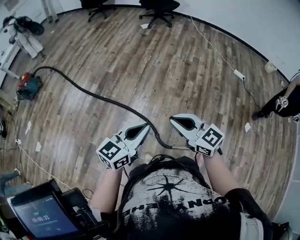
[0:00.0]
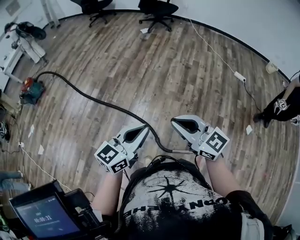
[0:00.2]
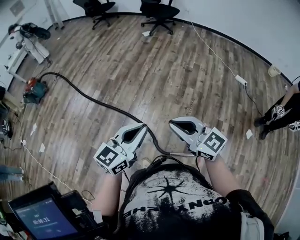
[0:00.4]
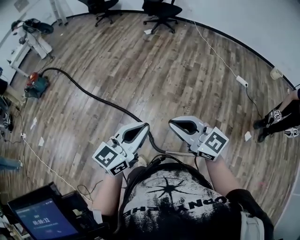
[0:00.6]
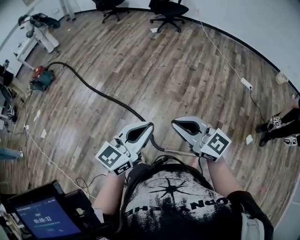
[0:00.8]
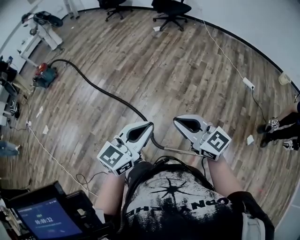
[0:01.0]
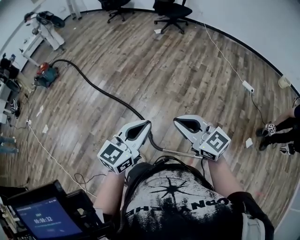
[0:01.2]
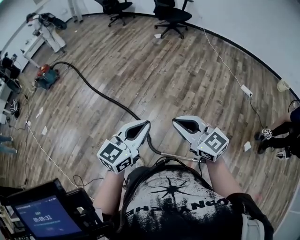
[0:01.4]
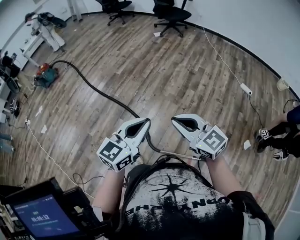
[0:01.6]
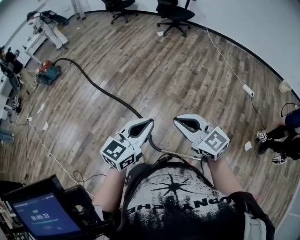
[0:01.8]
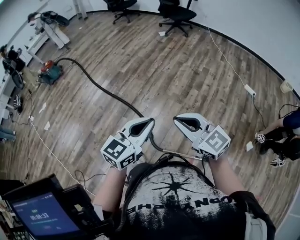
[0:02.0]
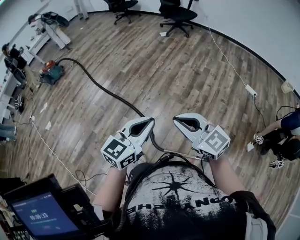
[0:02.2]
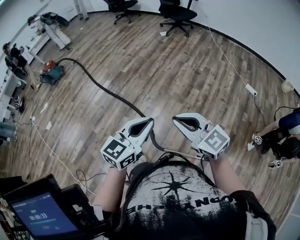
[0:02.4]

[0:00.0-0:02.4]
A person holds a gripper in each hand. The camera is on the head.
0:00.0 to 0:01.2: Both grippers travel together to the right, roughly 20 cm.
0:01.2 to 0:02.4: The grippers stay close to where they were, moving slightly.

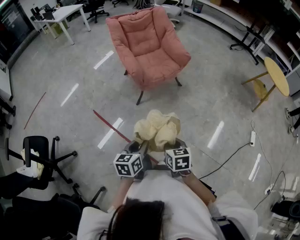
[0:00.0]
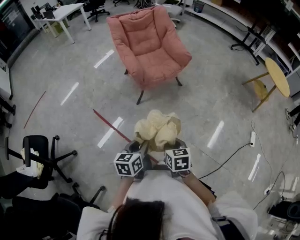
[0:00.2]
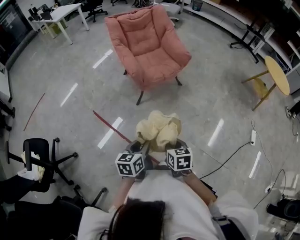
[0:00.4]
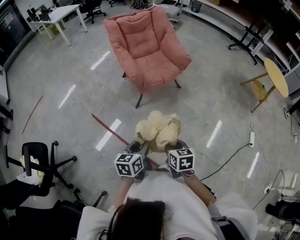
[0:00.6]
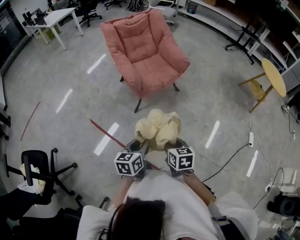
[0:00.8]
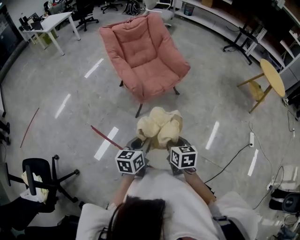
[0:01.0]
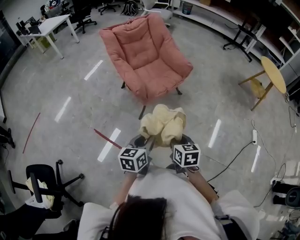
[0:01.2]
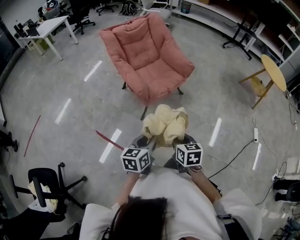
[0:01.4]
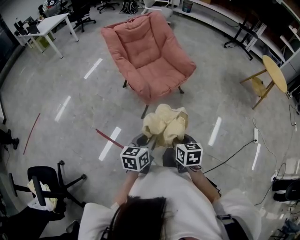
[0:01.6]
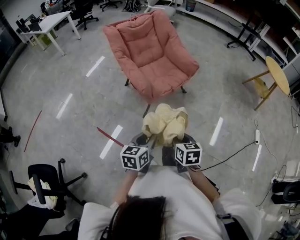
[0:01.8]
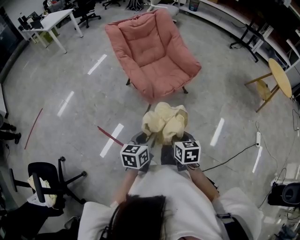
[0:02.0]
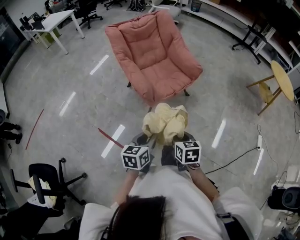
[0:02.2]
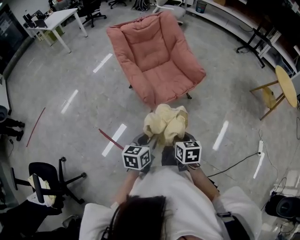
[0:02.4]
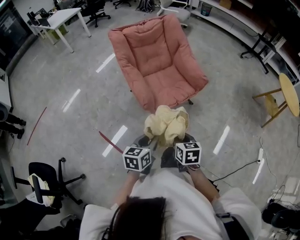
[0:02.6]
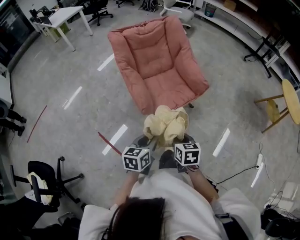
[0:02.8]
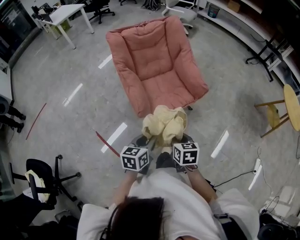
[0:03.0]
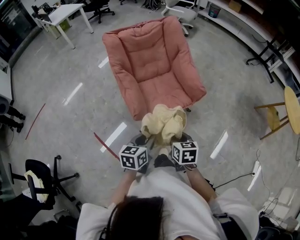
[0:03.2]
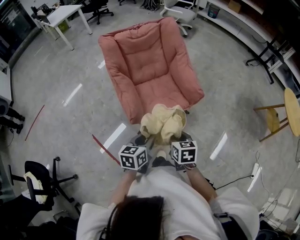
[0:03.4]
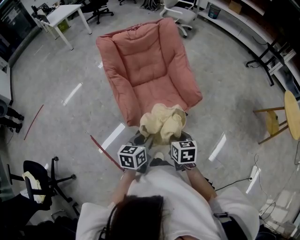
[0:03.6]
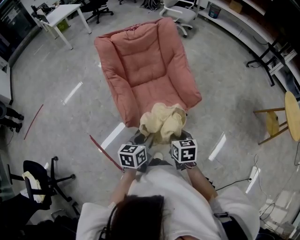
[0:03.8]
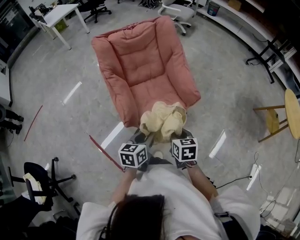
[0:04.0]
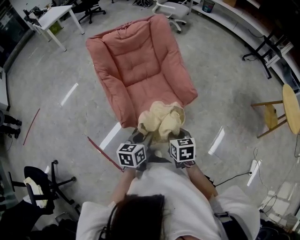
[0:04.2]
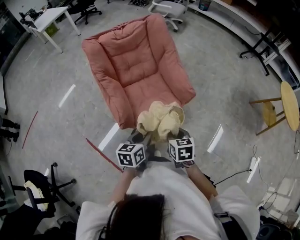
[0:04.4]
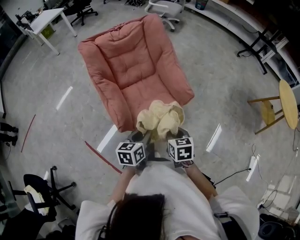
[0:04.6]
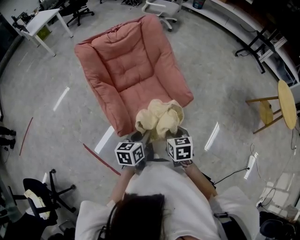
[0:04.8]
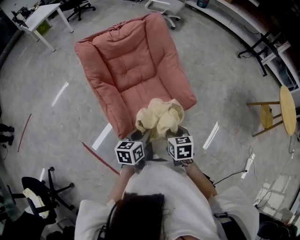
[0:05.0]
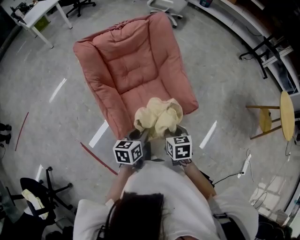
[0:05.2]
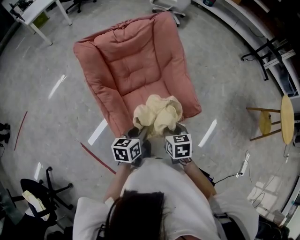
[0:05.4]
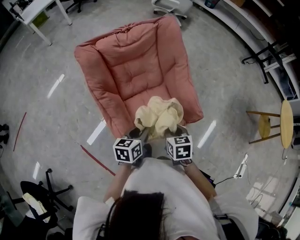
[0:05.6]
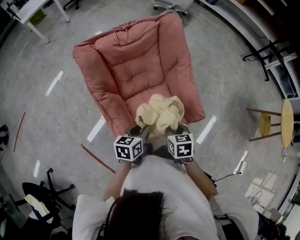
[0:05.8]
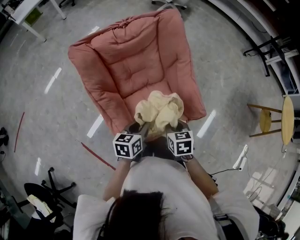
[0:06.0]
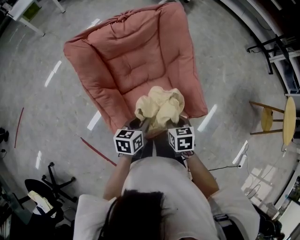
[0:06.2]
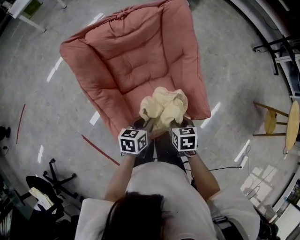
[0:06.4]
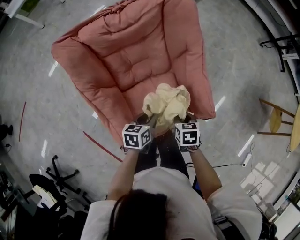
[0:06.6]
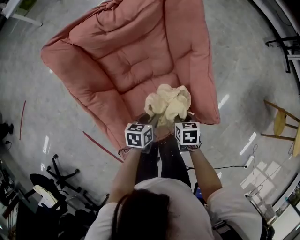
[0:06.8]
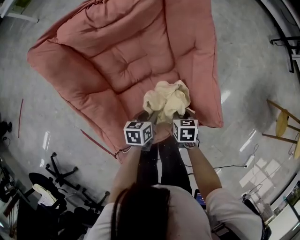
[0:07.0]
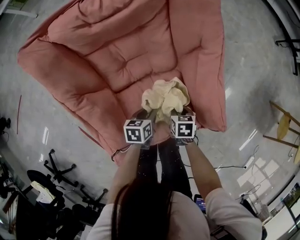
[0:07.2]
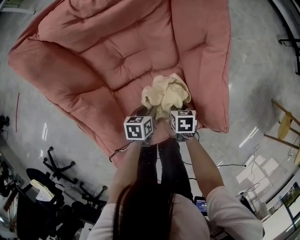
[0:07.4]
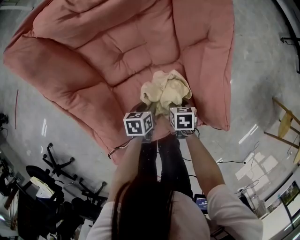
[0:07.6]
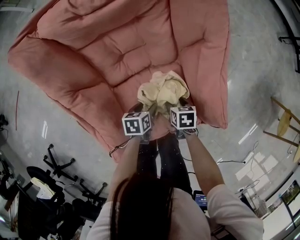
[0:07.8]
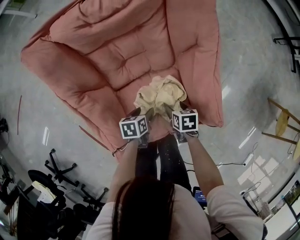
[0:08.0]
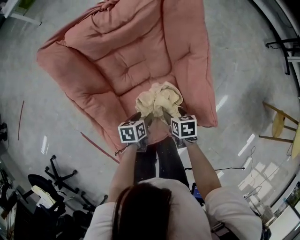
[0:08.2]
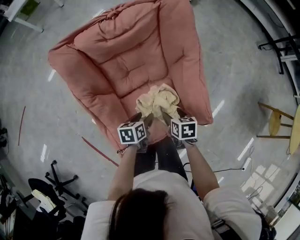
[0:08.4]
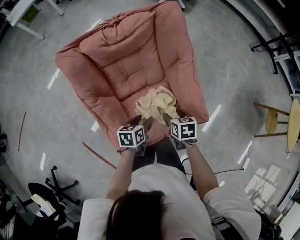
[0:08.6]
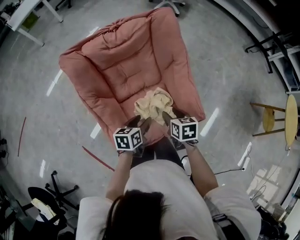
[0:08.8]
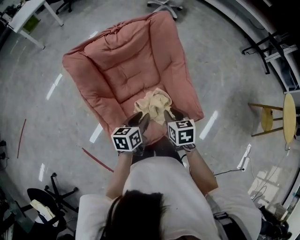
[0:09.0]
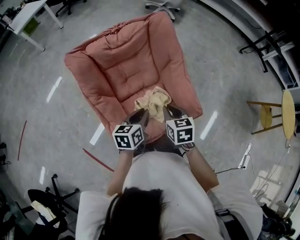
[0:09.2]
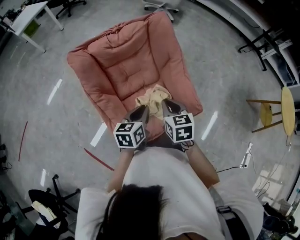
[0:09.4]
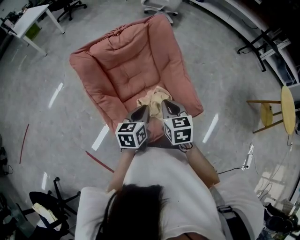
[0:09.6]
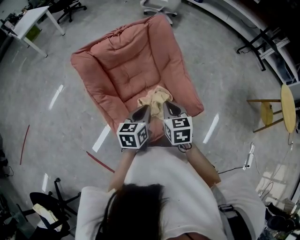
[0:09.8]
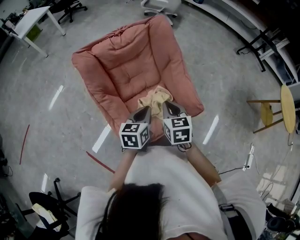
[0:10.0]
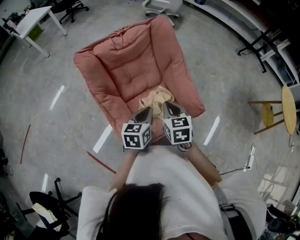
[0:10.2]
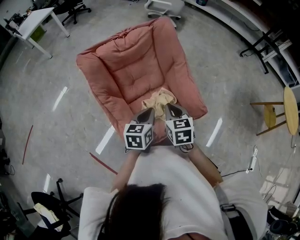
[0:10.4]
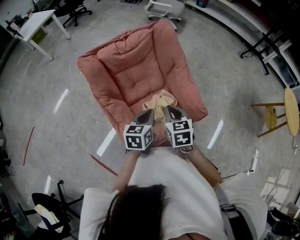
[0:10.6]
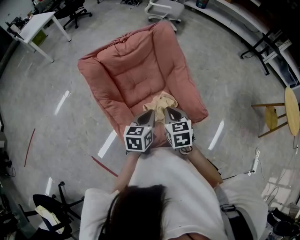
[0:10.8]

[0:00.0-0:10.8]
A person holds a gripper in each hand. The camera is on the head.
0:00.0 to 0:01.6: The grippers both shift forward and to the left by some 20 cm.
0:01.6 to 0:03.0: Both grippers move forward, about 20 cm.
0:03.0 to 0:04.6: The grippers both shift forward and to the right by roughly 15 cm.
0:04.6 to 0:06.2: Both grippers travel together forward and to the left, about 25 cm.
0:06.2 to 0:07.8: The two grippers go some 30 cm downward. The right gripper turns by about 20 degrees, and opens up; the left gripper rotates roughly 30 degrees, and opens up.
0:07.8 to 0:09.2: The grippers both shift upward by roughly 35 cm. The left gripper turns by approximately 30 degrees, and closes. Meanwhile the right gripper turns by roughly 30 degrees, and closes its fingers.
0:09.2 to 0:10.8: The left gripper moves about 5 cm; the right gripper shifts by some 5 cm.

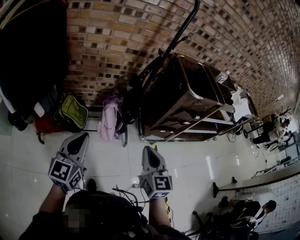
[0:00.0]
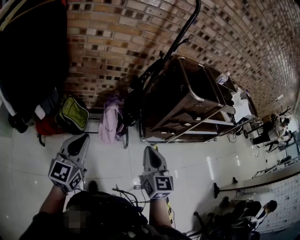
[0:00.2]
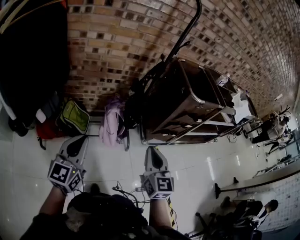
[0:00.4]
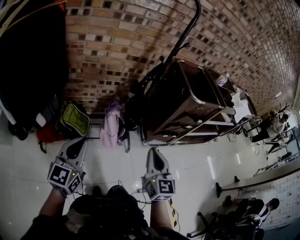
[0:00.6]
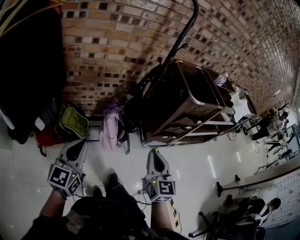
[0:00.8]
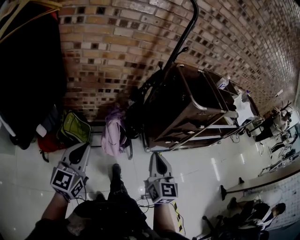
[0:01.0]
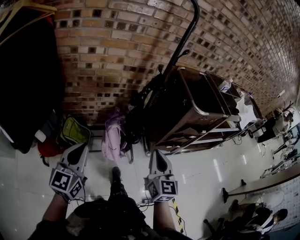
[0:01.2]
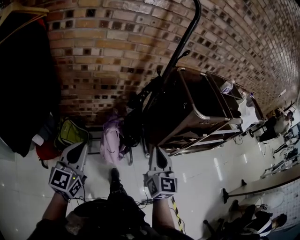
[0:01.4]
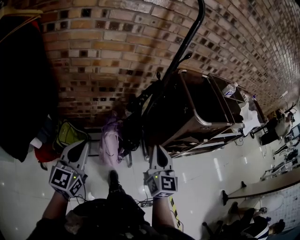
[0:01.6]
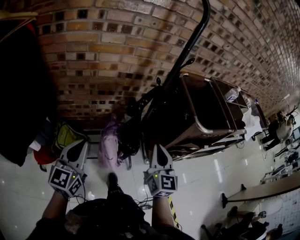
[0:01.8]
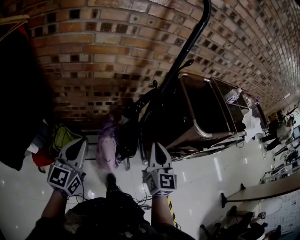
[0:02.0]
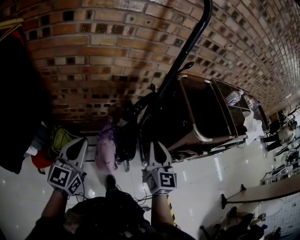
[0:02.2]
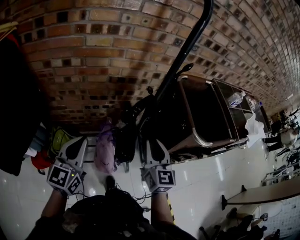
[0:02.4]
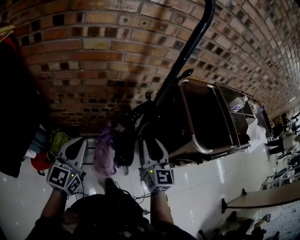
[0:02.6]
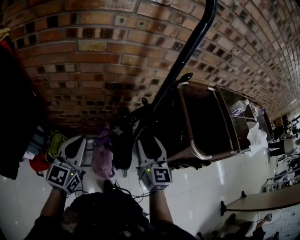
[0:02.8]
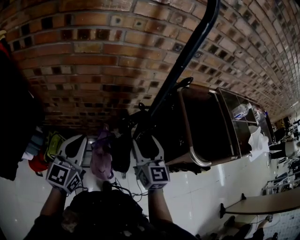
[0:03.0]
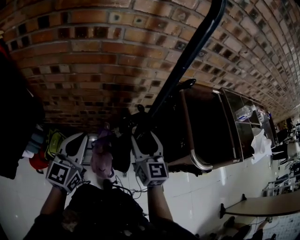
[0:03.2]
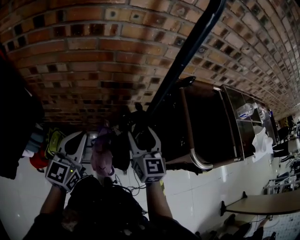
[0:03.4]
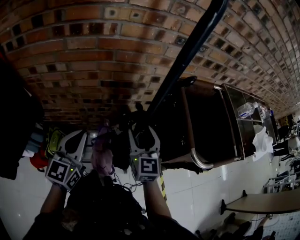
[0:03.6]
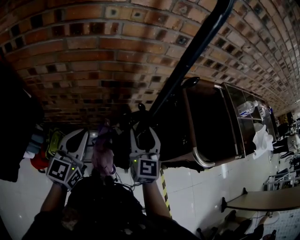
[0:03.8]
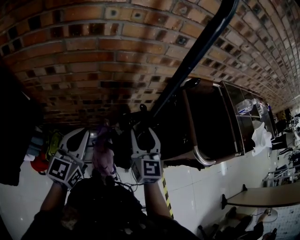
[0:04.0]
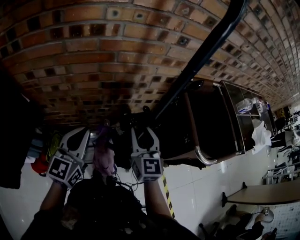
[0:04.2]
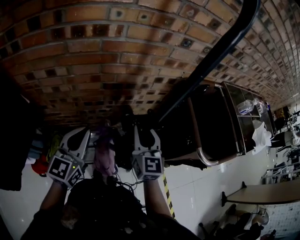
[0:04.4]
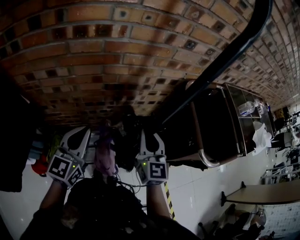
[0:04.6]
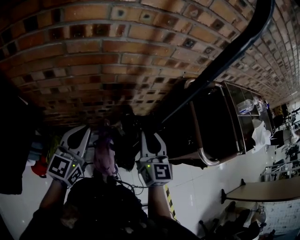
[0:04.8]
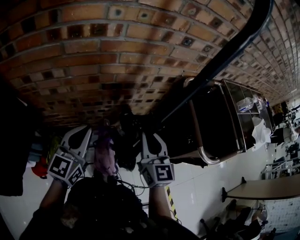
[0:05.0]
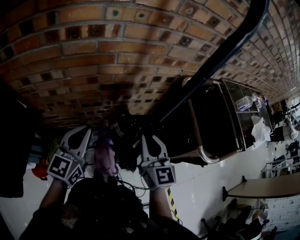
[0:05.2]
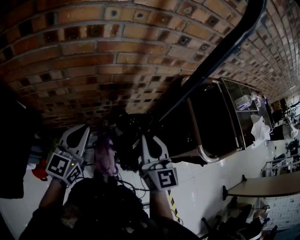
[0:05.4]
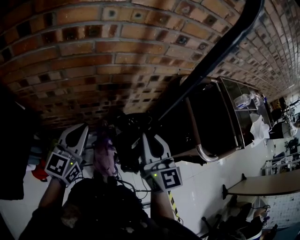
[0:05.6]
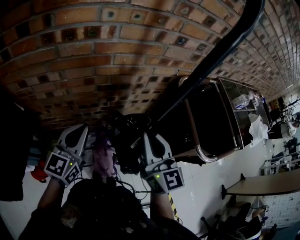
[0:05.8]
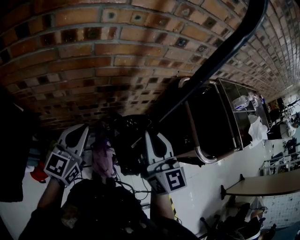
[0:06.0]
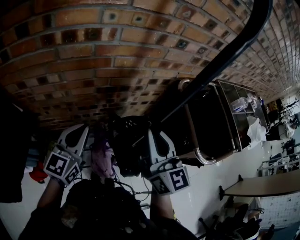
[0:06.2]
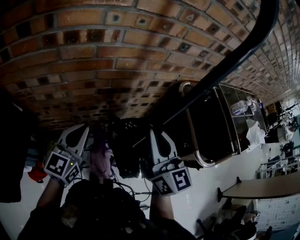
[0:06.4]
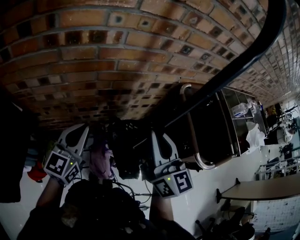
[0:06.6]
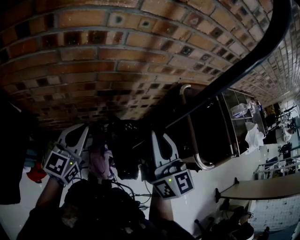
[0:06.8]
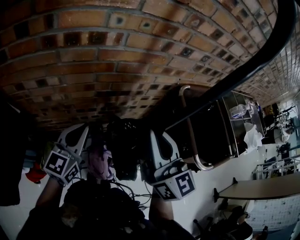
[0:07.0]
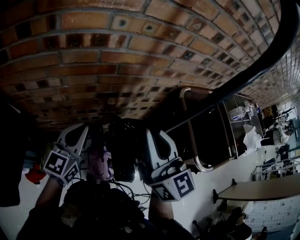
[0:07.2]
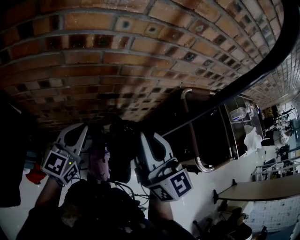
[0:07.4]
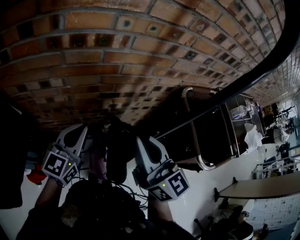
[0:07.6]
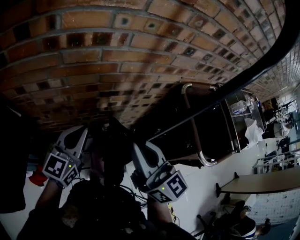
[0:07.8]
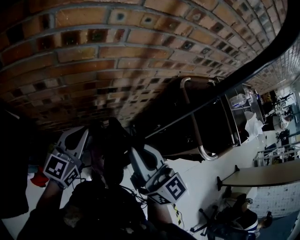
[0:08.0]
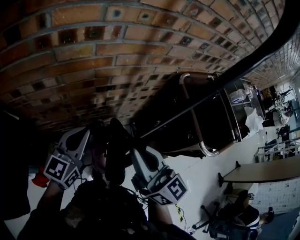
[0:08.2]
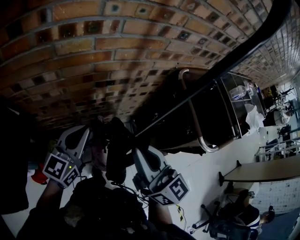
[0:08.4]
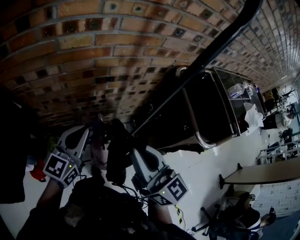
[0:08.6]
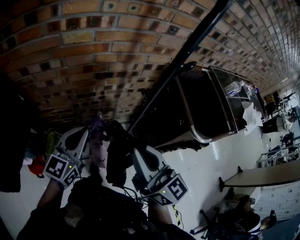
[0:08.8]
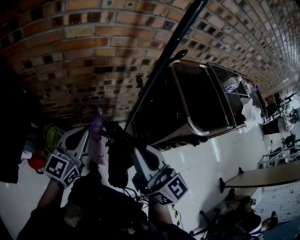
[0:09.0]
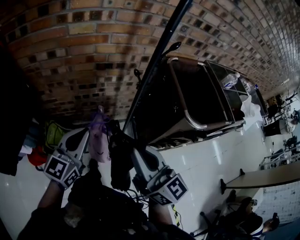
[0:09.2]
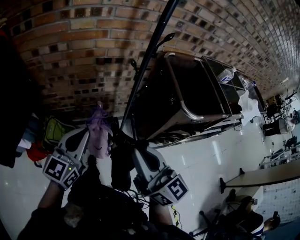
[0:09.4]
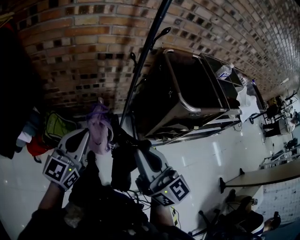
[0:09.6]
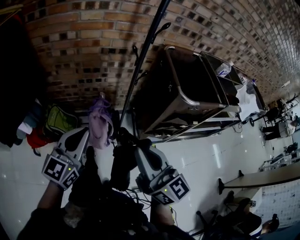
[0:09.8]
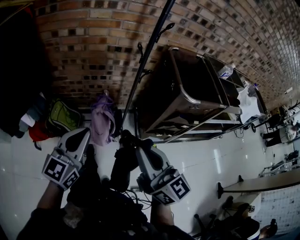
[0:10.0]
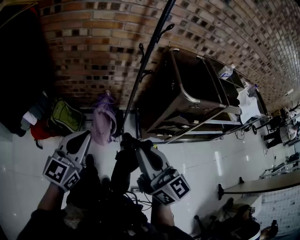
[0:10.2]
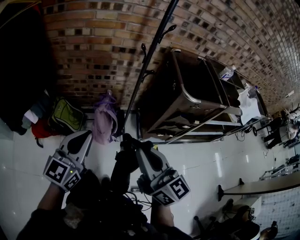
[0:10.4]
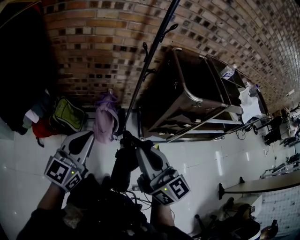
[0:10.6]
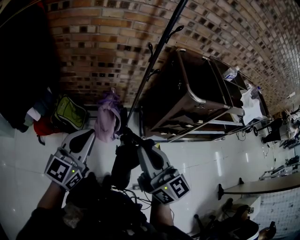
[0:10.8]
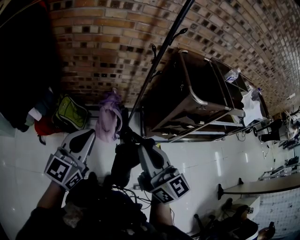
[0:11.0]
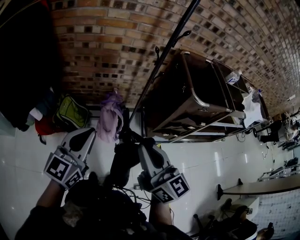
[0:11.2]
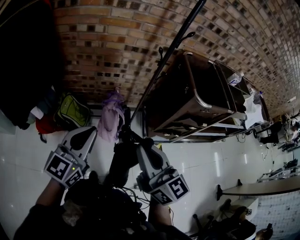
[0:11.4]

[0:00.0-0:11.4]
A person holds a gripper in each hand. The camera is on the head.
0:00.0 to 0:01.4: The two grippers go roughly 15 cm forward.
0:01.4 to 0:02.8: The grippers both shift forward by some 25 cm. The right gripper opens.
0:02.8 to 0:04.2: The two grippers go some 10 cm forward.
0:04.2 to 0:05.6: The right gripper travels upward by approximately 5 cm, and closes.
0:05.6 to 0:07.2: The right gripper shifts some 10 cm upward.
0:07.2 to 0:08.6: The left gripper shifts roughly 10 cm backward. The right gripper heads backward and downward, covering about 15 cm.
0:08.6 to 0:10.0: The two grippers go roughly 35 cm backward.
0:10.0 to 0:11.4: Both grippers travel together to the left, about 5 cm.
